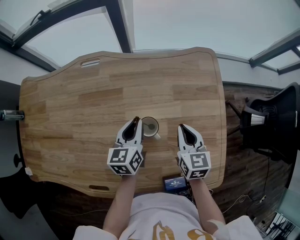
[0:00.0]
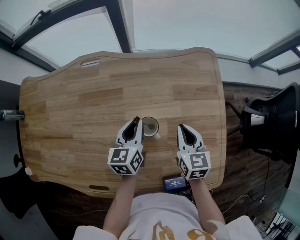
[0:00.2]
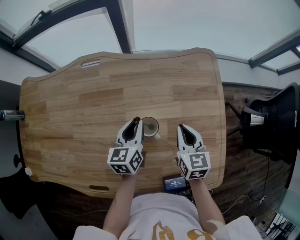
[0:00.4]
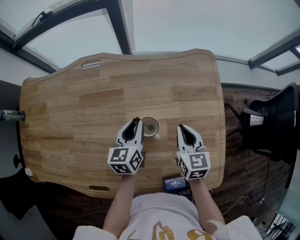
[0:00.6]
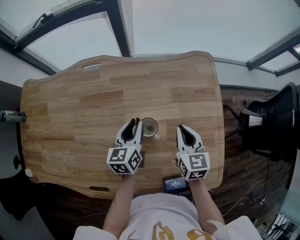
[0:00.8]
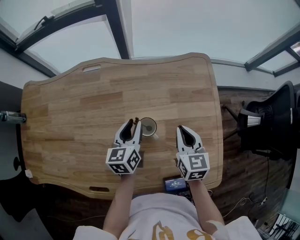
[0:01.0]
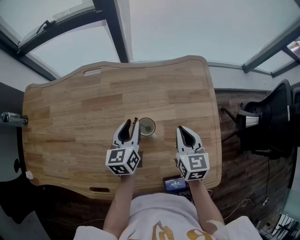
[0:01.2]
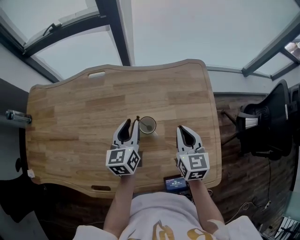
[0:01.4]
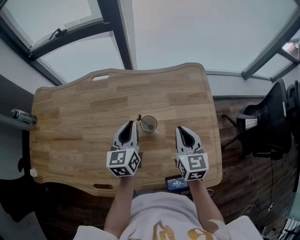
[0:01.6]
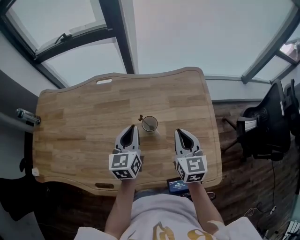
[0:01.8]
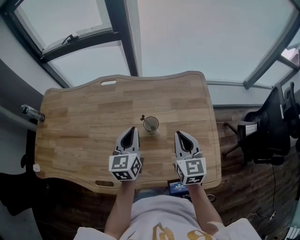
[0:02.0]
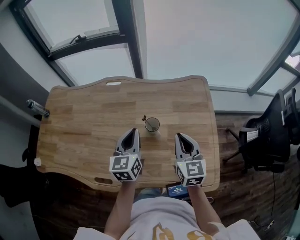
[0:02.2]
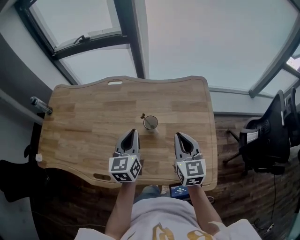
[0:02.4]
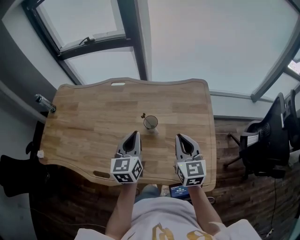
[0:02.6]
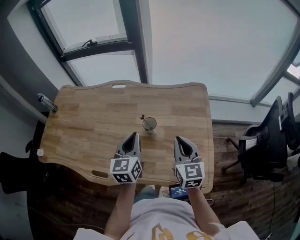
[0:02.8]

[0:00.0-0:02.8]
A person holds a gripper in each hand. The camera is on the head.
0:00.0 to 0:01.4: Both grippers move upward, about 5 cm.
0:01.4 to 0:02.8: Both grippers travel together backward and upward, approximately 15 cm. The left gripper closes up.

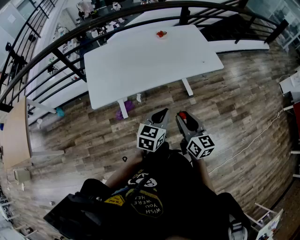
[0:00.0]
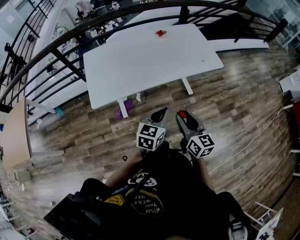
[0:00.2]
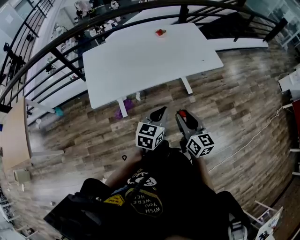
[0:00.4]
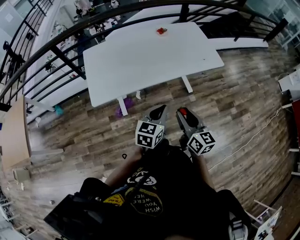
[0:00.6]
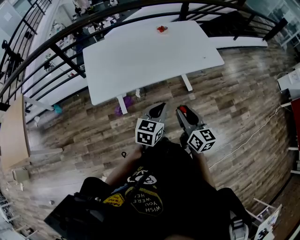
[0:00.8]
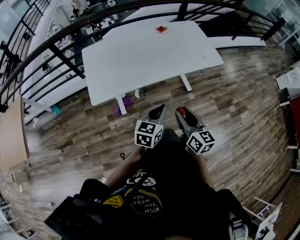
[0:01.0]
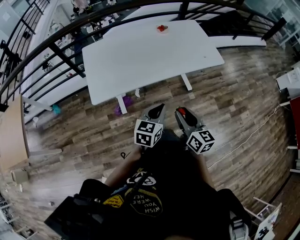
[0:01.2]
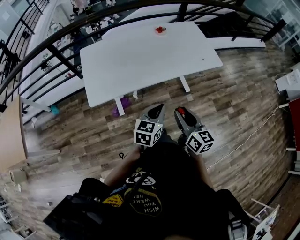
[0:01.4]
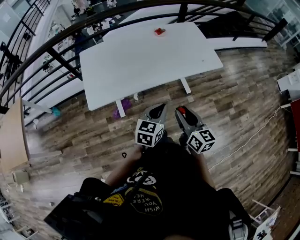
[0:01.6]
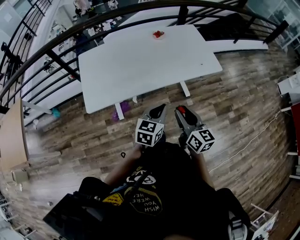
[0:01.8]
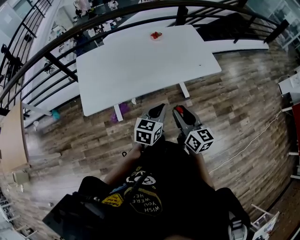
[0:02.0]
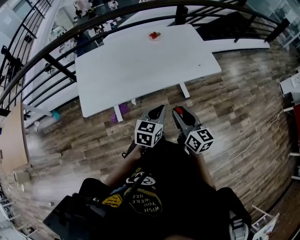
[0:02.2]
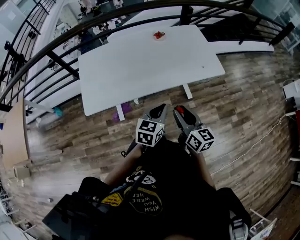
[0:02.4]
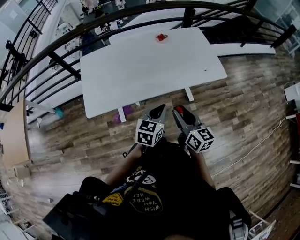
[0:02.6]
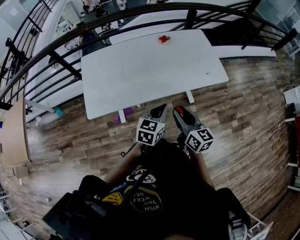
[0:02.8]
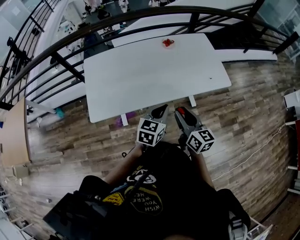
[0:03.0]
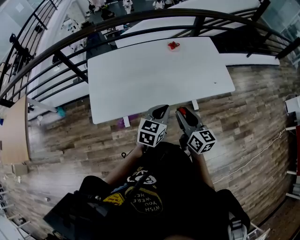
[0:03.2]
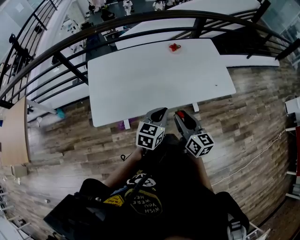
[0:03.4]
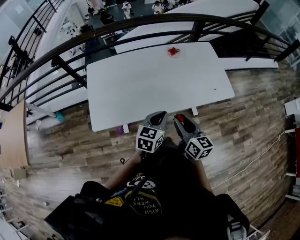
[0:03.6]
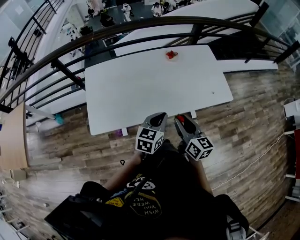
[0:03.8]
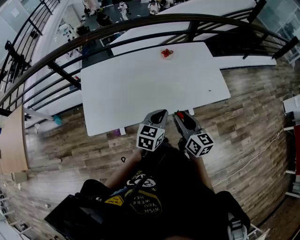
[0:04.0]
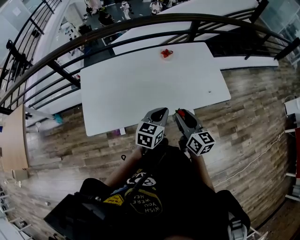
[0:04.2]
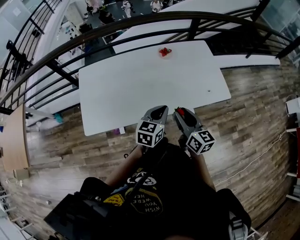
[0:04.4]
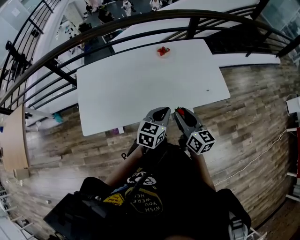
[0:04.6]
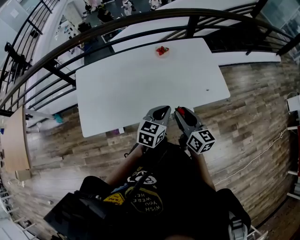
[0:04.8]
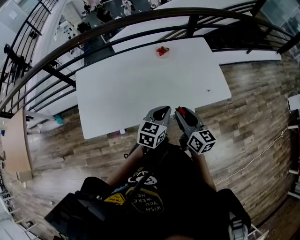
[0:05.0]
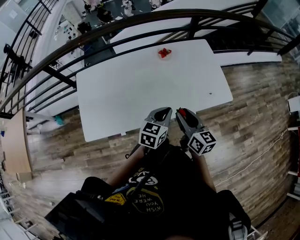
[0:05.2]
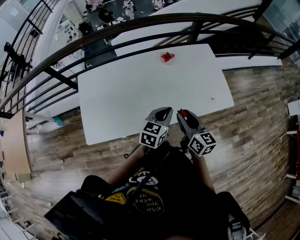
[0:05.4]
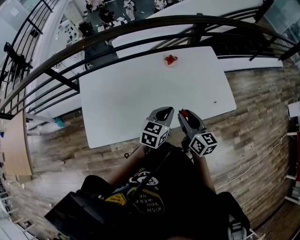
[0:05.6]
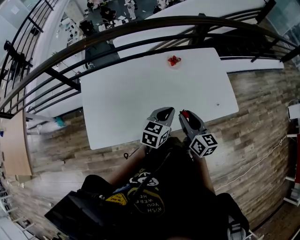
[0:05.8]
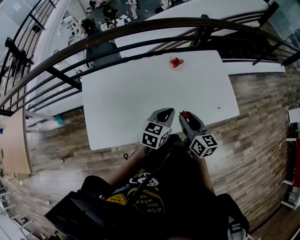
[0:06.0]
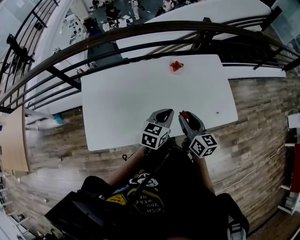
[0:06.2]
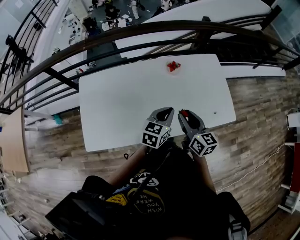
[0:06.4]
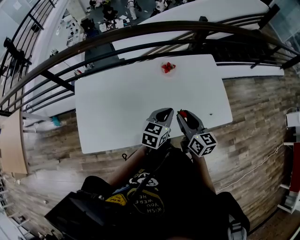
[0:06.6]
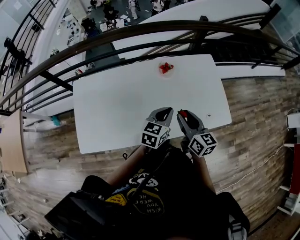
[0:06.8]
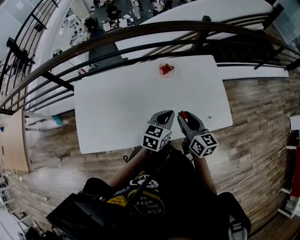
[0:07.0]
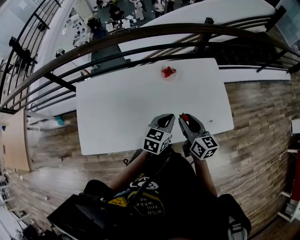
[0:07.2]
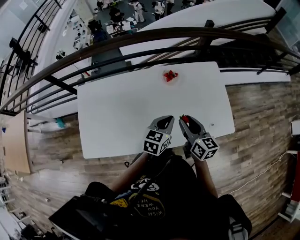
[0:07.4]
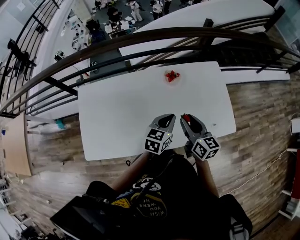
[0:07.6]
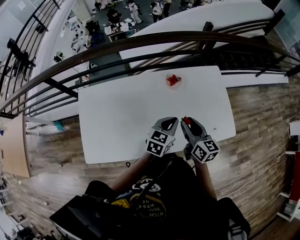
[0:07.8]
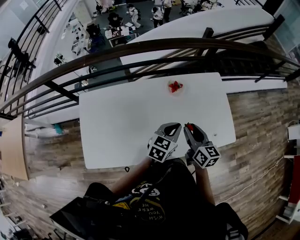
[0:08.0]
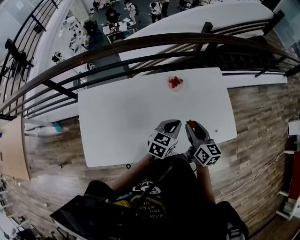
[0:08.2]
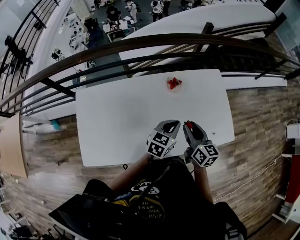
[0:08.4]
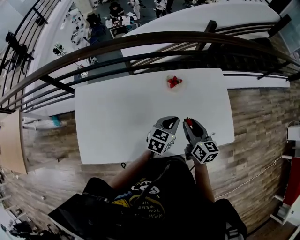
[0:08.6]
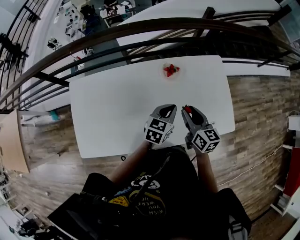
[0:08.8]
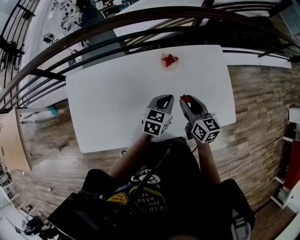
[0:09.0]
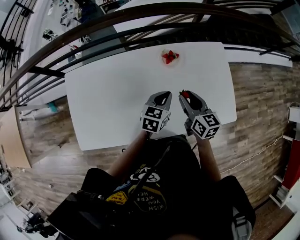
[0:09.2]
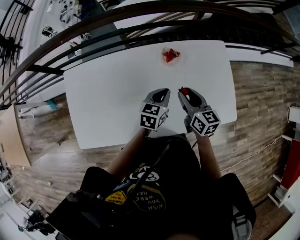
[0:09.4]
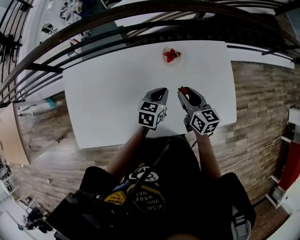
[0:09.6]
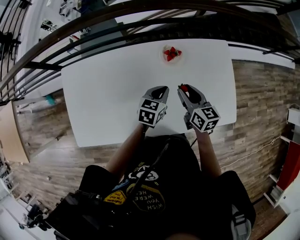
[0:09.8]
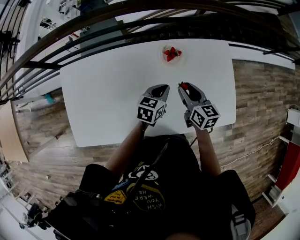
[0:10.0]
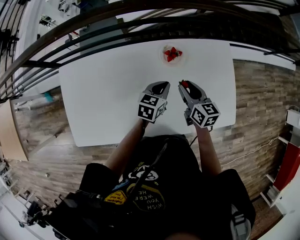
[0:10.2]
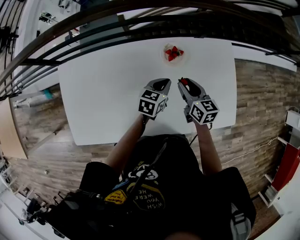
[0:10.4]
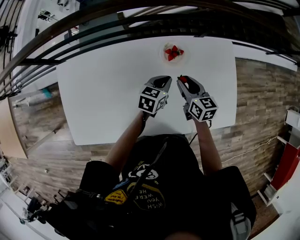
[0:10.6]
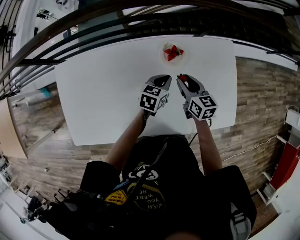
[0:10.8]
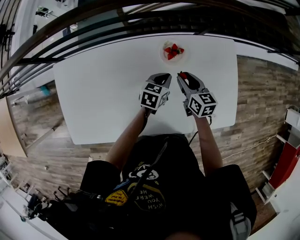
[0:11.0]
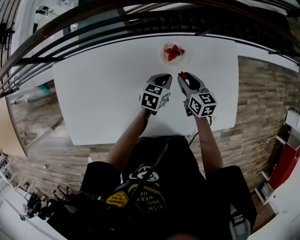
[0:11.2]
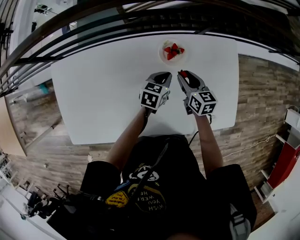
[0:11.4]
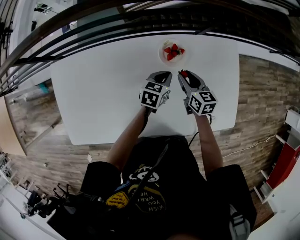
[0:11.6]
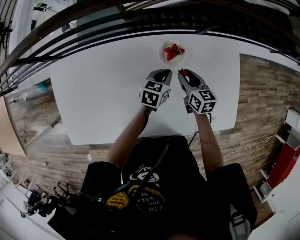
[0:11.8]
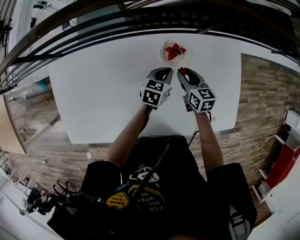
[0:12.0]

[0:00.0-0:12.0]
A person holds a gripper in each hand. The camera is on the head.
0:00.0 to 0:01.6: The grippers move only a little.
0:01.6 to 0:03.0: Both grippers move forward, about 15 cm.
0:03.0 to 0:04.4: The grippers both shift forward by some 10 cm.
0:04.4 to 0:06.0: The grippers both shift forward and to the left by about 15 cm.
0:06.0 to 0:07.6: Both grippers move forward and to the right, some 10 cm.
0:07.6 to 0:09.0: Both grippers move forward and downward, approximately 10 cm.
0:09.0 to 0:10.4: Both grippers travel together forward and downward, approximately 10 cm.
0:10.4 to 0:12.0: The left gripper heads forward and downward, covering some 10 cm; the right gripper moves downward and forward, roughly 10 cm.

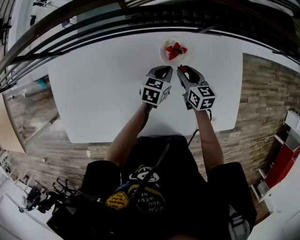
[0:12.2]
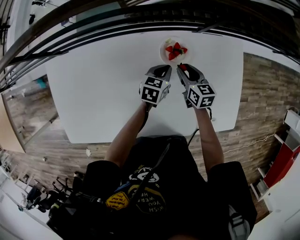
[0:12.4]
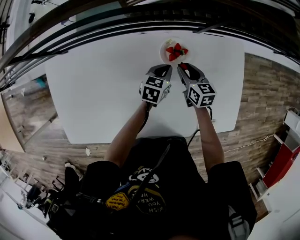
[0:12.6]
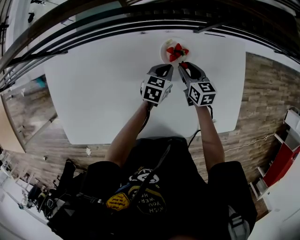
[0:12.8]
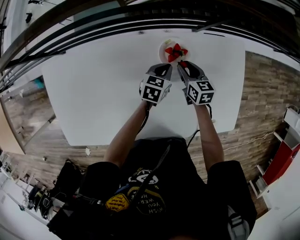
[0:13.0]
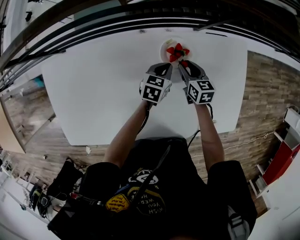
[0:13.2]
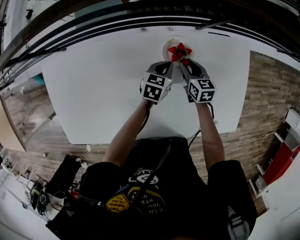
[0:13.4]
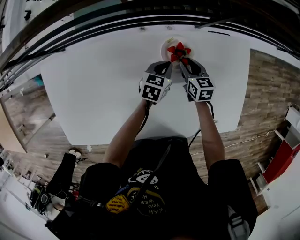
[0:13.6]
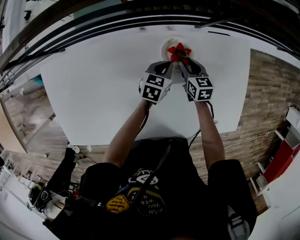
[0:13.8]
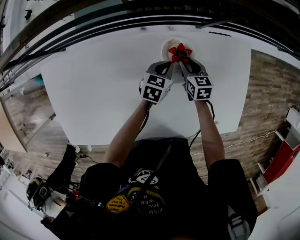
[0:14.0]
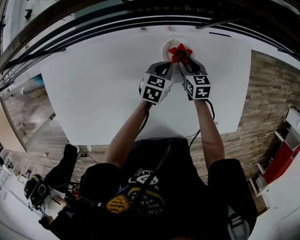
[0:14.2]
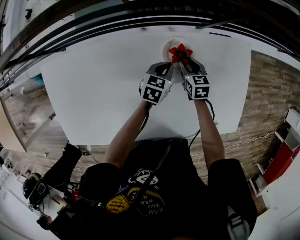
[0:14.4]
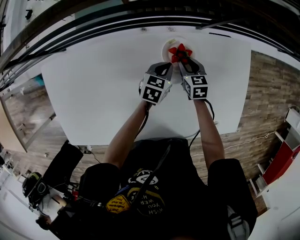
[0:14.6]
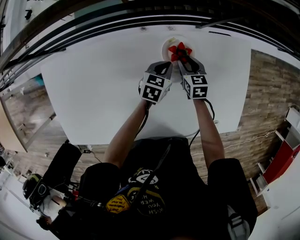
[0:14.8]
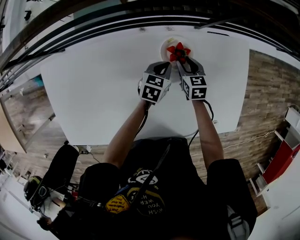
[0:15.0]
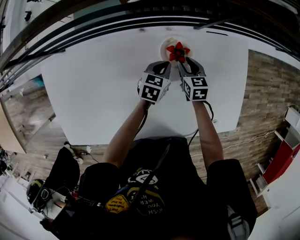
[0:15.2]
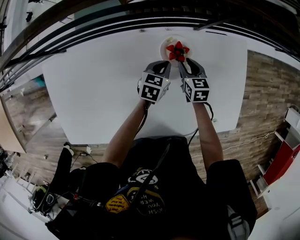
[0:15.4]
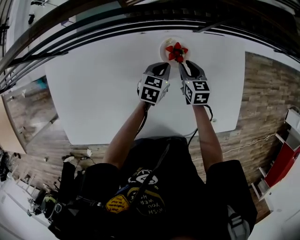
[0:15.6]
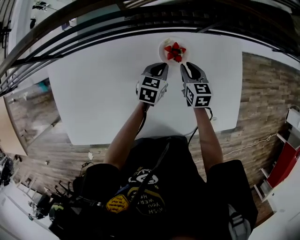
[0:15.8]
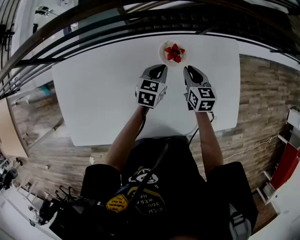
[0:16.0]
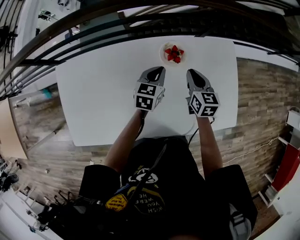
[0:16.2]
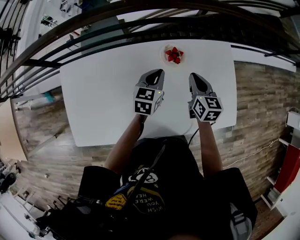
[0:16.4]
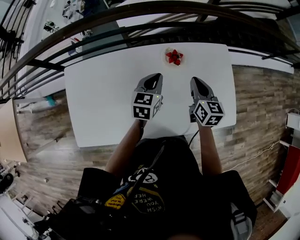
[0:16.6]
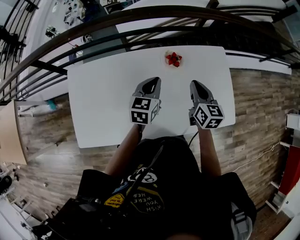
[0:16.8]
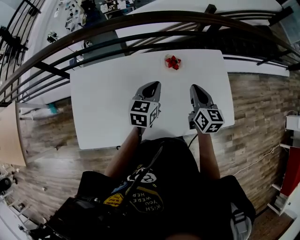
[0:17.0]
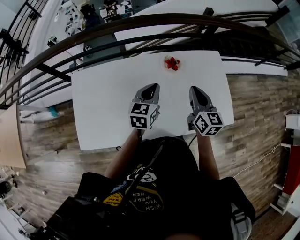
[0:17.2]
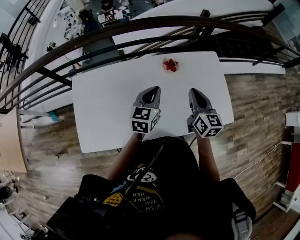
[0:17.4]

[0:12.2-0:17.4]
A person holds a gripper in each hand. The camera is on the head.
0:12.2 to 0:14.0: The left gripper moves some 5 cm, while the right gripper goes some 10 cm downward and forward.
0:14.0 to 0:15.6: The right gripper shifts by about 5 cm.
0:15.6 to 0:17.4: Both grippers move upward and backward, some 35 cm. The left gripper turns by roughly 30 degrees. Meanwhile the right gripper rotates approximately 30 degrees, and closes its fingers.

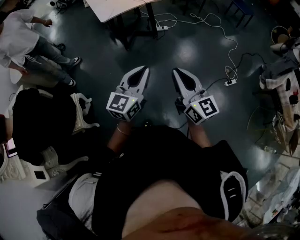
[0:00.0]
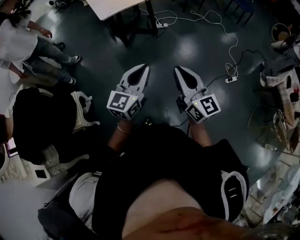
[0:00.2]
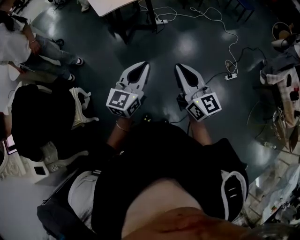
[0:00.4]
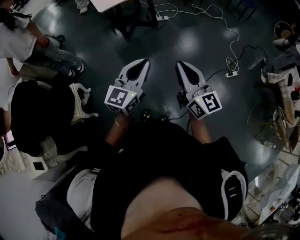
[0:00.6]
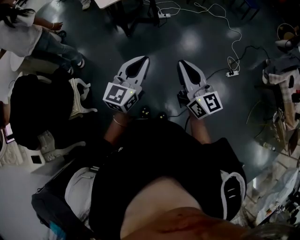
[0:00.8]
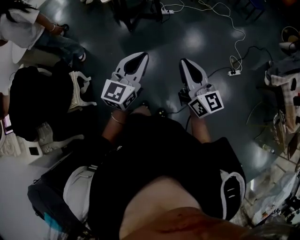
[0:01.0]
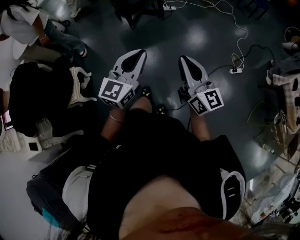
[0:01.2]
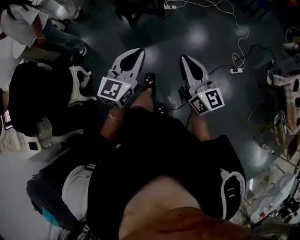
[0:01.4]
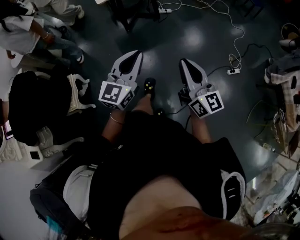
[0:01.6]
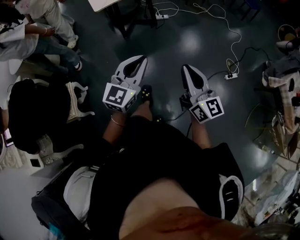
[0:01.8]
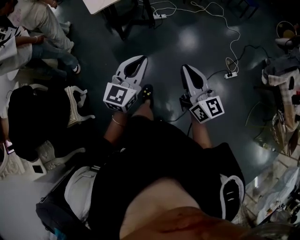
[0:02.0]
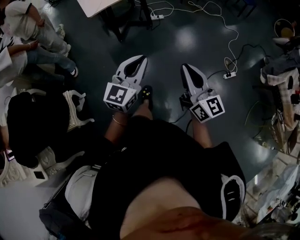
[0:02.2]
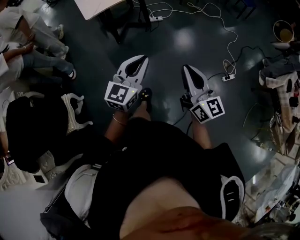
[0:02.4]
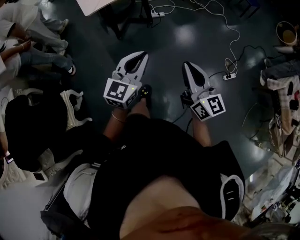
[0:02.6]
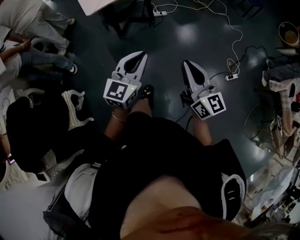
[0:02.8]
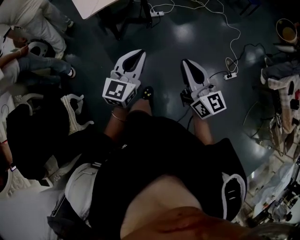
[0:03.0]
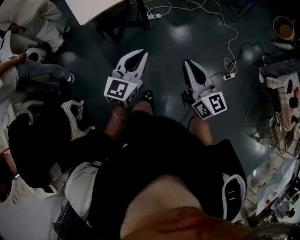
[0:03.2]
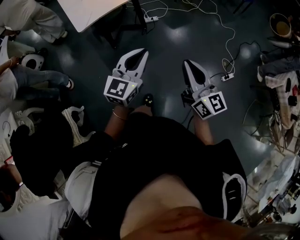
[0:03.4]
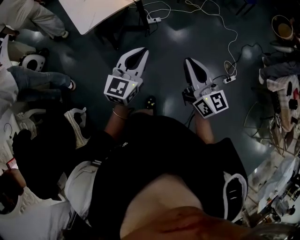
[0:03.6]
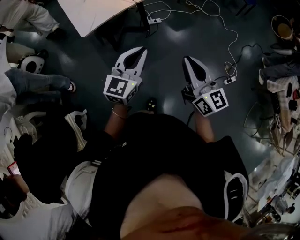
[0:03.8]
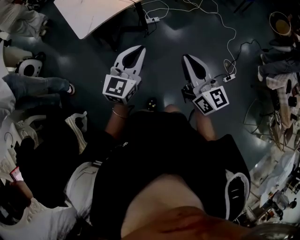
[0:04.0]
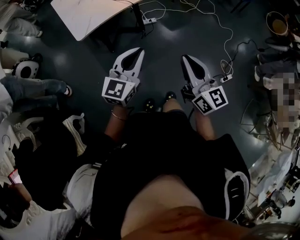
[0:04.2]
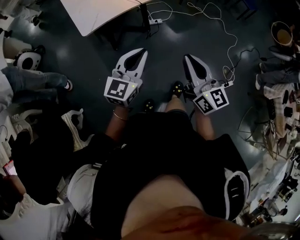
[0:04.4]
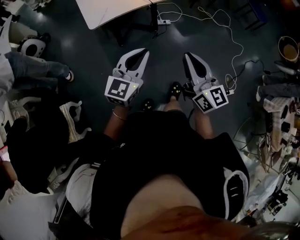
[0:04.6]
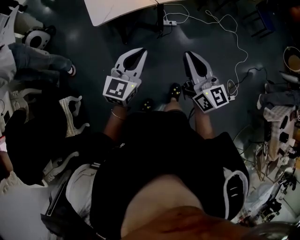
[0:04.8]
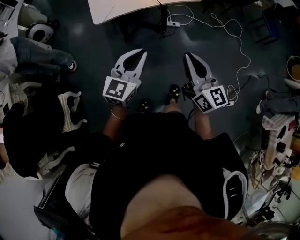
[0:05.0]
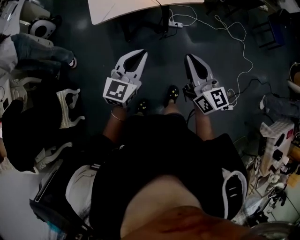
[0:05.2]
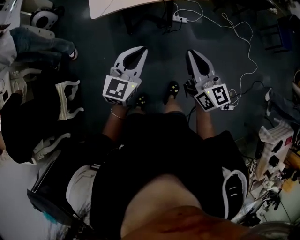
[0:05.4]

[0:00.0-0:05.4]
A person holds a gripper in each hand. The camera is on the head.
0:00.0 to 0:01.4: The left gripper ends up roughly 5 cm from where it was, while the right gripper shifts about 5 cm to the right.
0:01.4 to 0:02.8: The grippers both shift forward by about 20 cm.
0:02.8 to 0:04.0: The grippers both shift forward by roughly 15 cm.
0:04.0 to 0:05.4: The left gripper heads forward, covering some 5 cm, and rotates approximately 20 degrees; the right gripper shifts roughly 15 cm forward, and turns by approximately 20 degrees.
